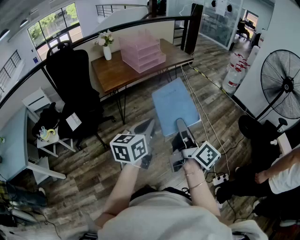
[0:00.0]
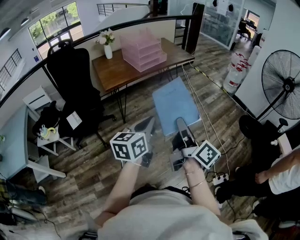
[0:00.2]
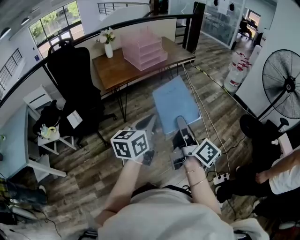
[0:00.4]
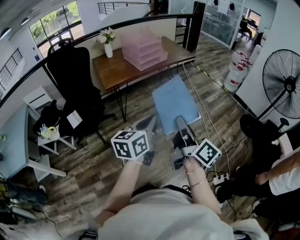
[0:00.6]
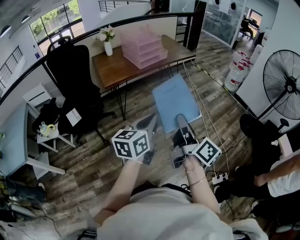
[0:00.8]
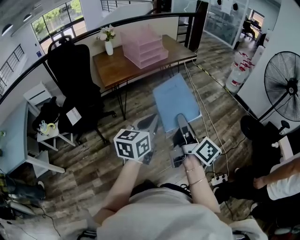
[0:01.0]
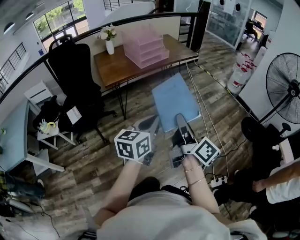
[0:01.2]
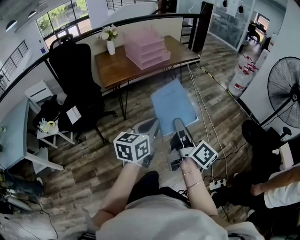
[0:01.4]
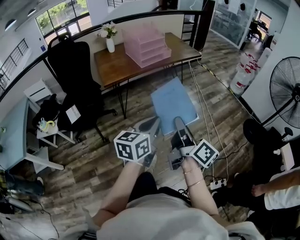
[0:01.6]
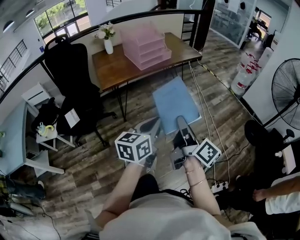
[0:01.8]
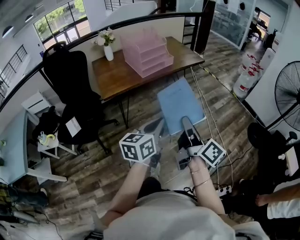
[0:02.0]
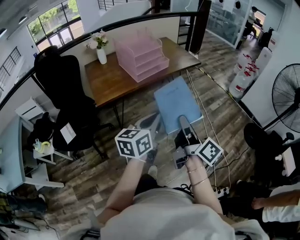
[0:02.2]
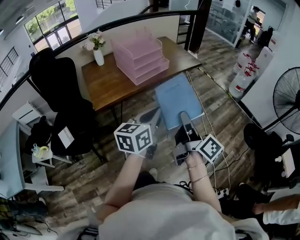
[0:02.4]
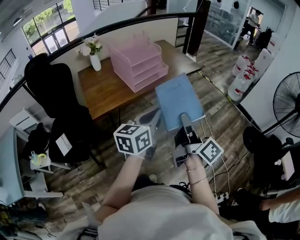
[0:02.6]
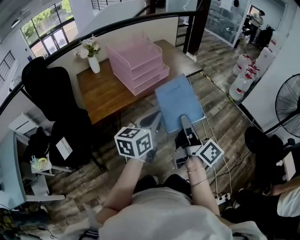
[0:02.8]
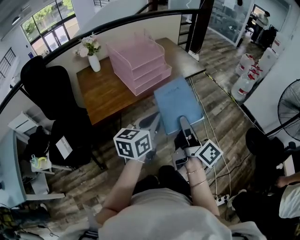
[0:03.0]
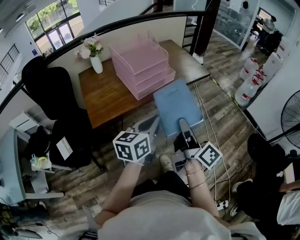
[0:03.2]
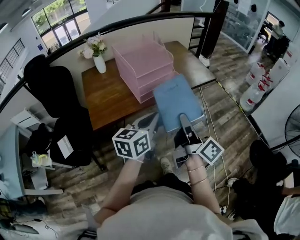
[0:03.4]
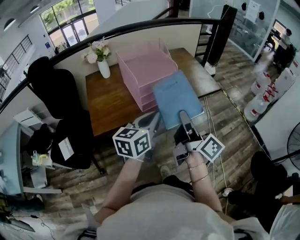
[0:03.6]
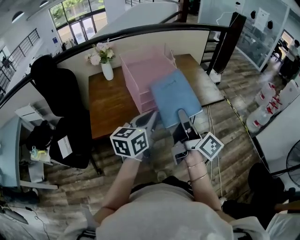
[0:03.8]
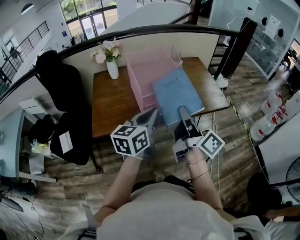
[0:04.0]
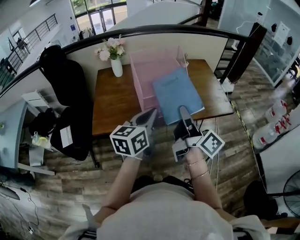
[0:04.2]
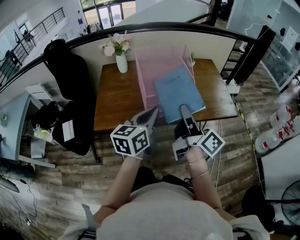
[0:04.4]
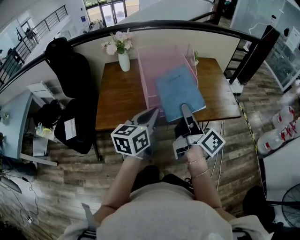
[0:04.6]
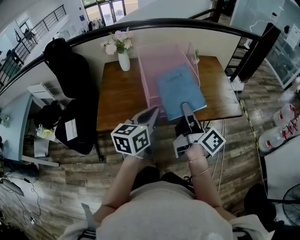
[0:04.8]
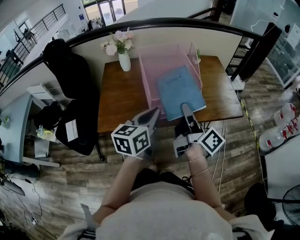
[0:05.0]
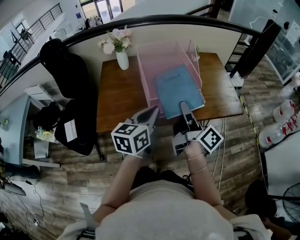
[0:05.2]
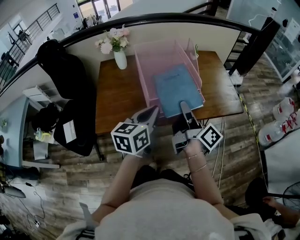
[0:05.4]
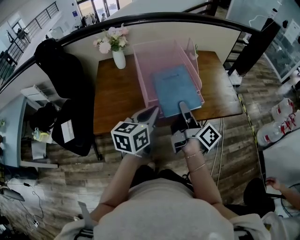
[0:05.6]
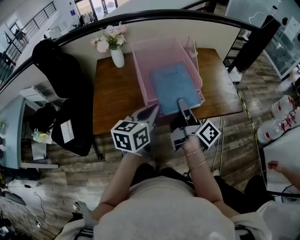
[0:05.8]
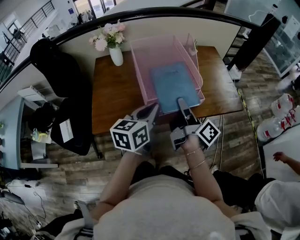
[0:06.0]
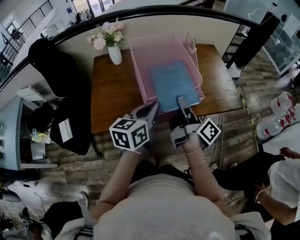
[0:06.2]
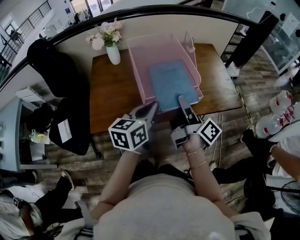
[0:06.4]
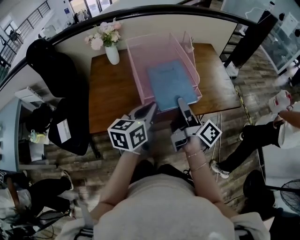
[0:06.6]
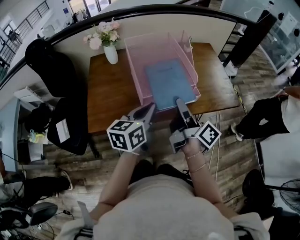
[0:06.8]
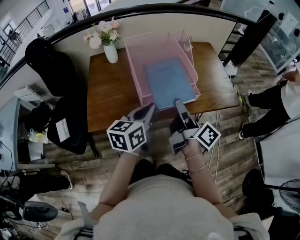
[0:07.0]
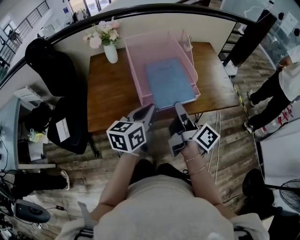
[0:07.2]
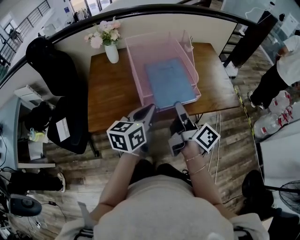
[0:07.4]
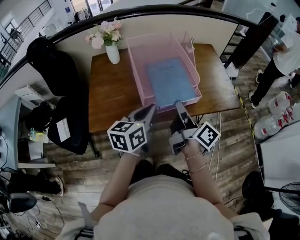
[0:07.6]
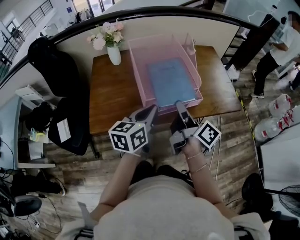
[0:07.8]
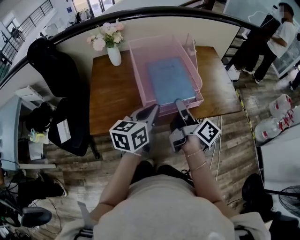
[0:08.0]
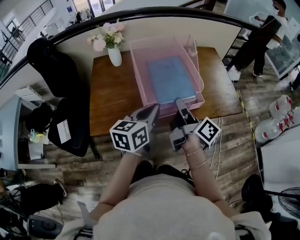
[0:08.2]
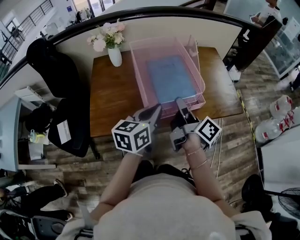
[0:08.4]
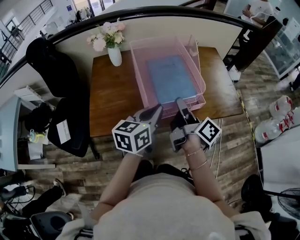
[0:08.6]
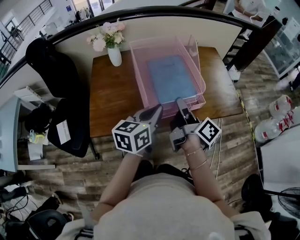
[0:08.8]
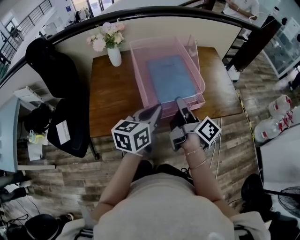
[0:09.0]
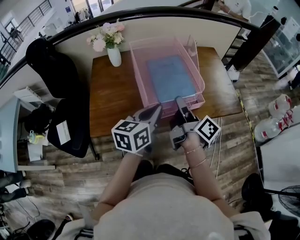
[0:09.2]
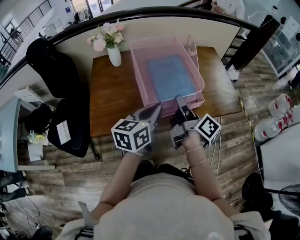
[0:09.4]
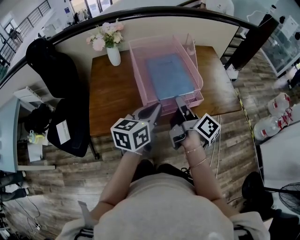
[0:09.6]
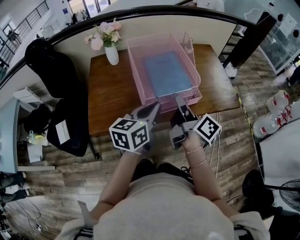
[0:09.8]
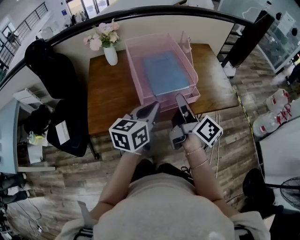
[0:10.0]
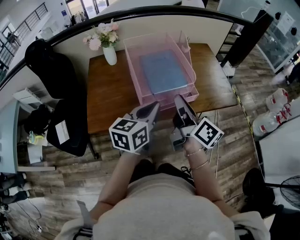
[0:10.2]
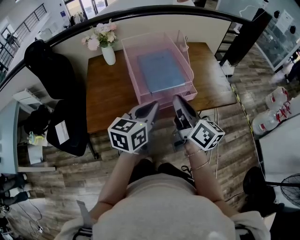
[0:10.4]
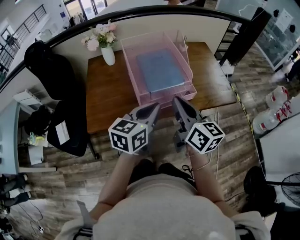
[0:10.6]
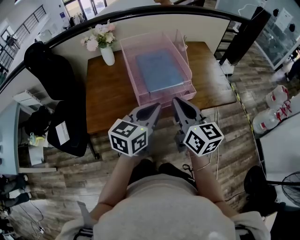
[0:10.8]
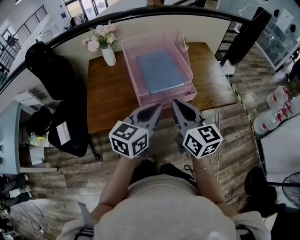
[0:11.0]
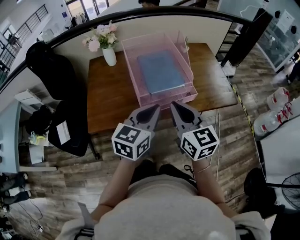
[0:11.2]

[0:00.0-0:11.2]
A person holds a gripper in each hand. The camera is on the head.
0:00.0 to 0:01.6: Both grippers move forward, approximately 5 cm.
0:01.6 to 0:03.2: The grippers both shift forward by about 35 cm.
0:03.2 to 0:04.8: Both grippers travel together forward, about 25 cm. The left gripper changes its angle by roughly 20 degrees, while the right gripper rotates some 20 degrees.
0:04.8 to 0:06.4: The left gripper ends up some 5 cm from where it was, while the right gripper moves forward and downward, about 5 cm, and opens up.
0:06.4 to 0:08.0: The right gripper closes.
0:08.0 to 0:09.6: There are only small adjustments of the grippers.
0:09.6 to 0:11.2: The right gripper is displaced backward by some 10 cm, and rolls counterclockwise, seen from behind, by some 70 degrees. Meanwhile the left gripper shifts by approximately 5 cm.

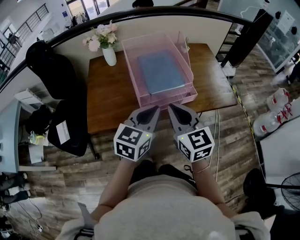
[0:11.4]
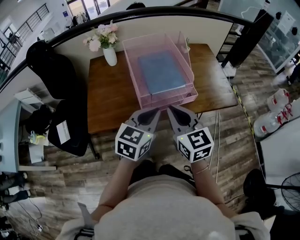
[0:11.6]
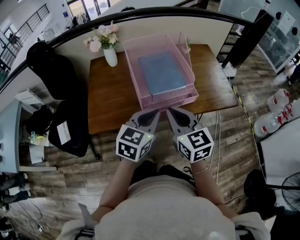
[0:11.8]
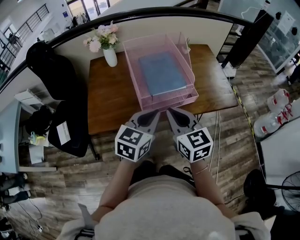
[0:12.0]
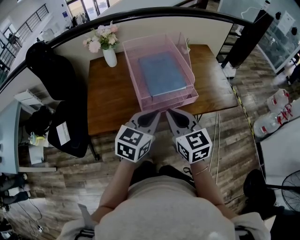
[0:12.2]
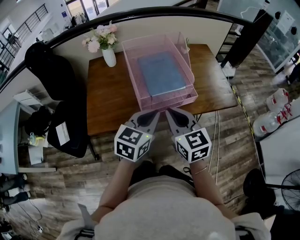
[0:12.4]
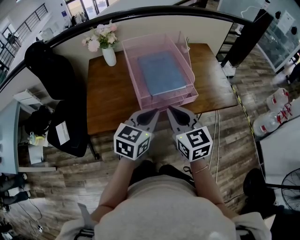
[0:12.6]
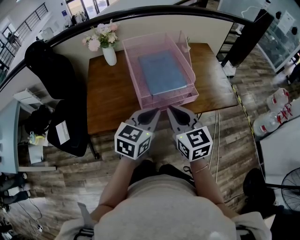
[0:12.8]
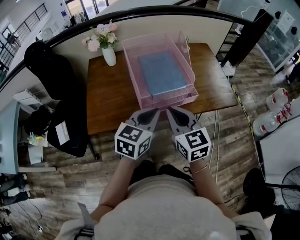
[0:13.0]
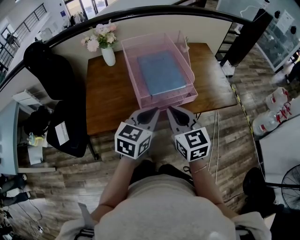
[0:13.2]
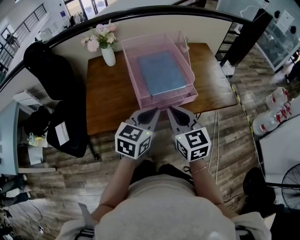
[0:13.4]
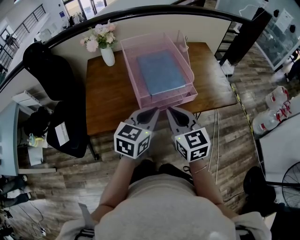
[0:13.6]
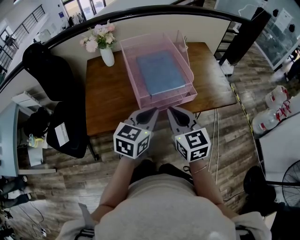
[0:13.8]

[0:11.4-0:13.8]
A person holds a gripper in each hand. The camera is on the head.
0:11.4 to 0:12.6: The grippers make only small movements.
0:12.6 to 0:13.8: Both grippers stay about where they are.

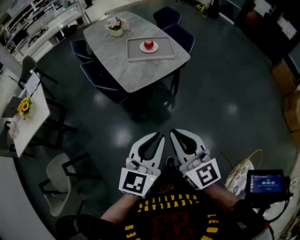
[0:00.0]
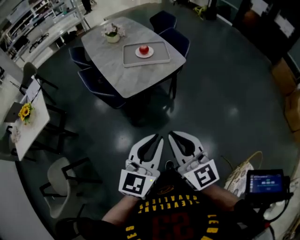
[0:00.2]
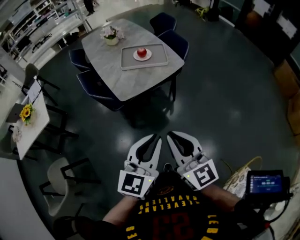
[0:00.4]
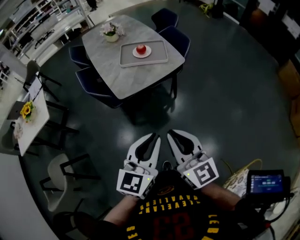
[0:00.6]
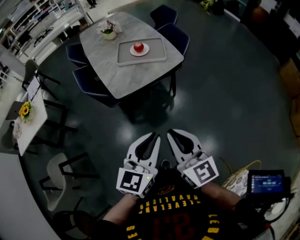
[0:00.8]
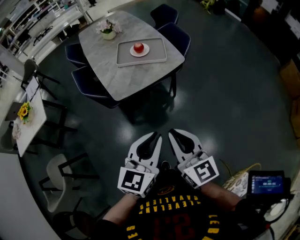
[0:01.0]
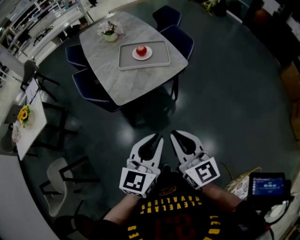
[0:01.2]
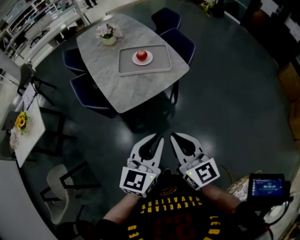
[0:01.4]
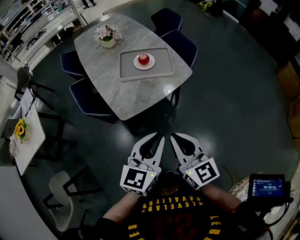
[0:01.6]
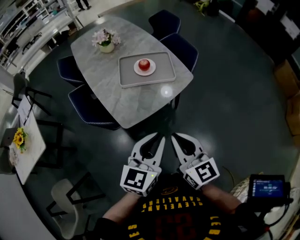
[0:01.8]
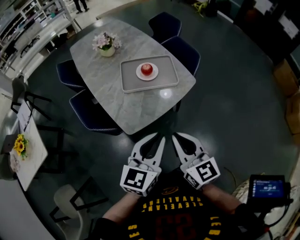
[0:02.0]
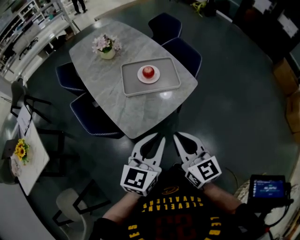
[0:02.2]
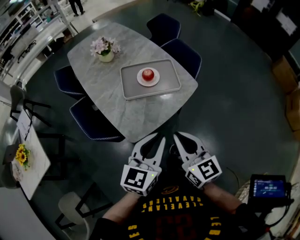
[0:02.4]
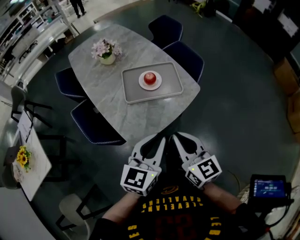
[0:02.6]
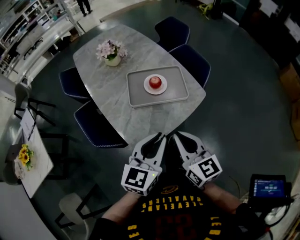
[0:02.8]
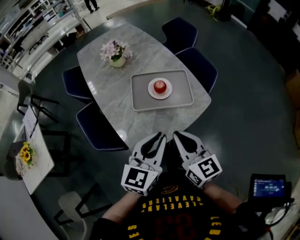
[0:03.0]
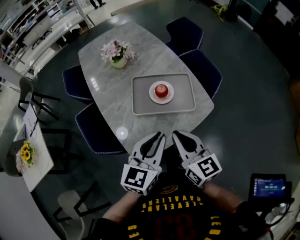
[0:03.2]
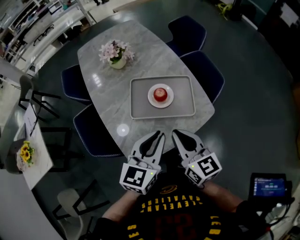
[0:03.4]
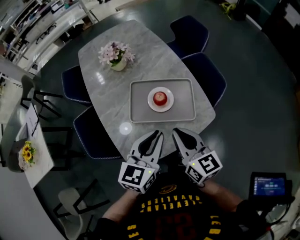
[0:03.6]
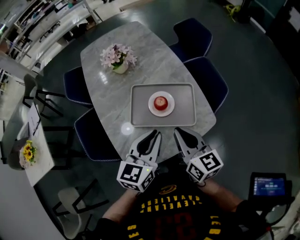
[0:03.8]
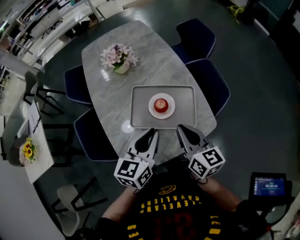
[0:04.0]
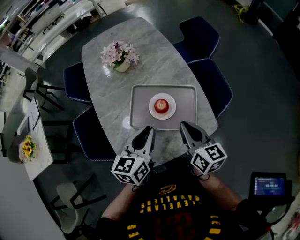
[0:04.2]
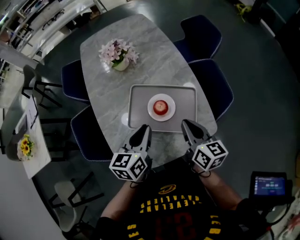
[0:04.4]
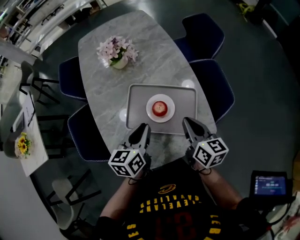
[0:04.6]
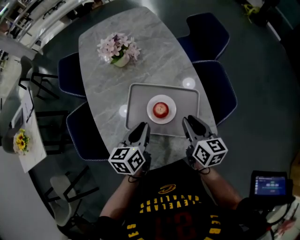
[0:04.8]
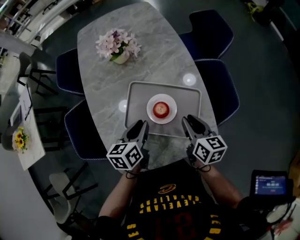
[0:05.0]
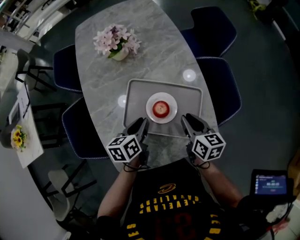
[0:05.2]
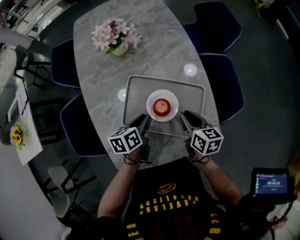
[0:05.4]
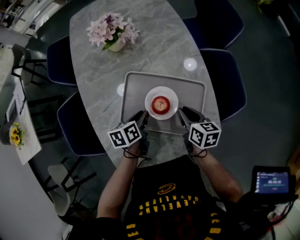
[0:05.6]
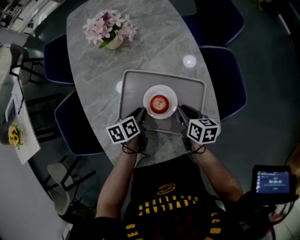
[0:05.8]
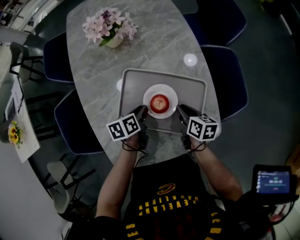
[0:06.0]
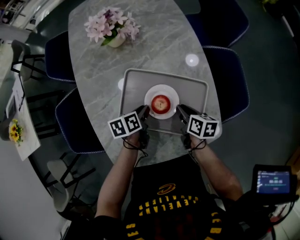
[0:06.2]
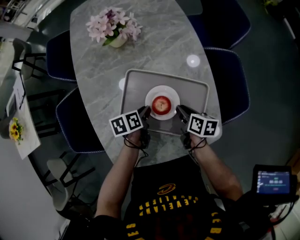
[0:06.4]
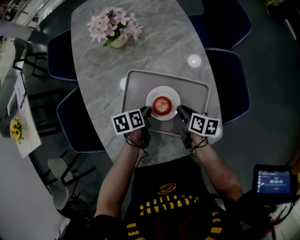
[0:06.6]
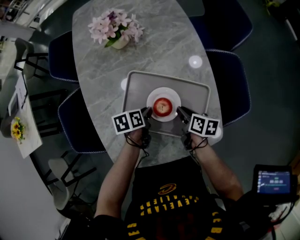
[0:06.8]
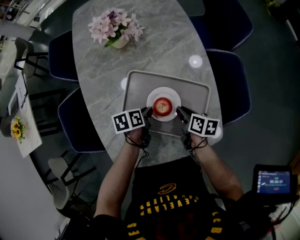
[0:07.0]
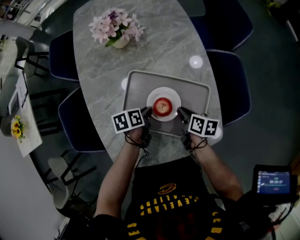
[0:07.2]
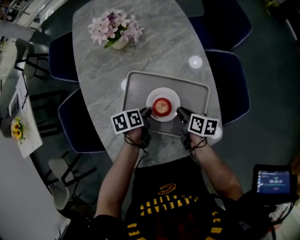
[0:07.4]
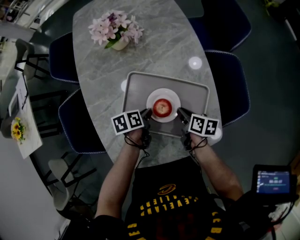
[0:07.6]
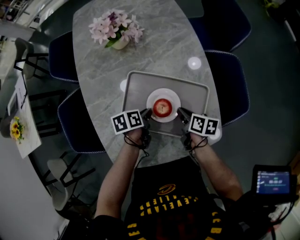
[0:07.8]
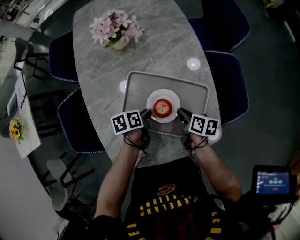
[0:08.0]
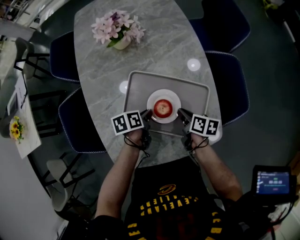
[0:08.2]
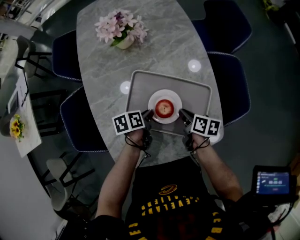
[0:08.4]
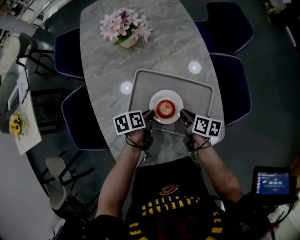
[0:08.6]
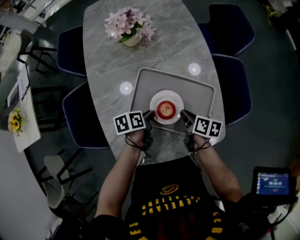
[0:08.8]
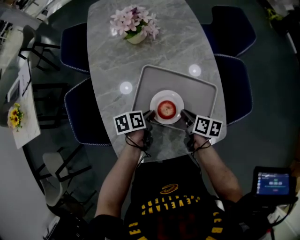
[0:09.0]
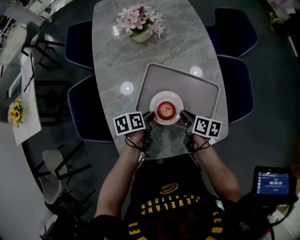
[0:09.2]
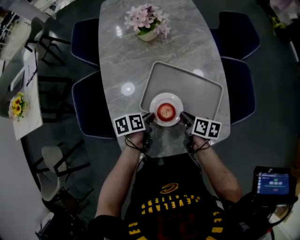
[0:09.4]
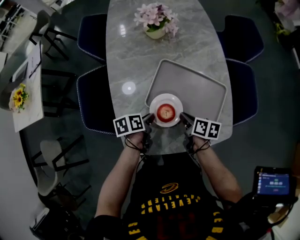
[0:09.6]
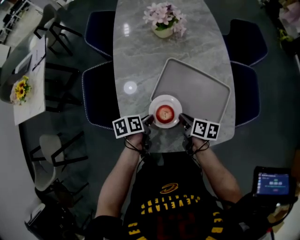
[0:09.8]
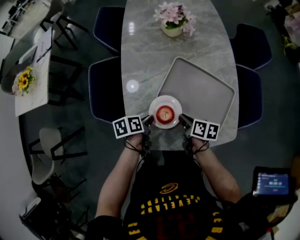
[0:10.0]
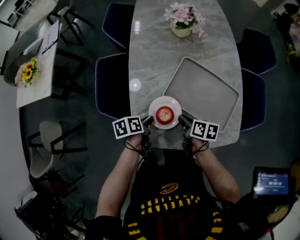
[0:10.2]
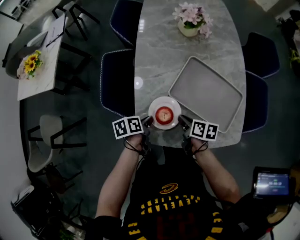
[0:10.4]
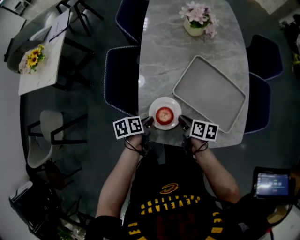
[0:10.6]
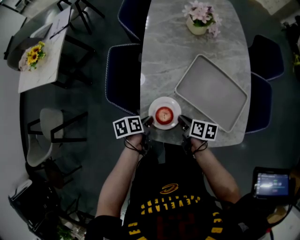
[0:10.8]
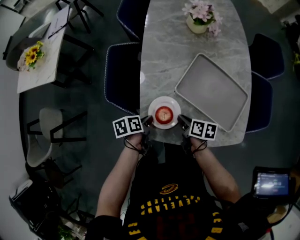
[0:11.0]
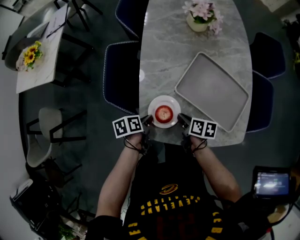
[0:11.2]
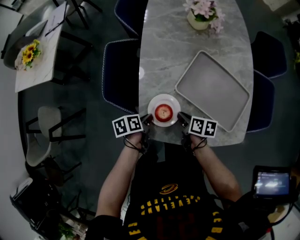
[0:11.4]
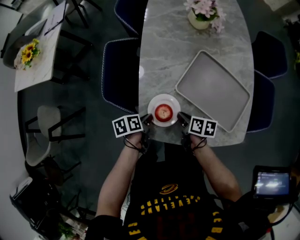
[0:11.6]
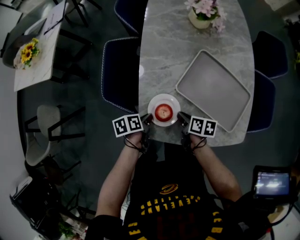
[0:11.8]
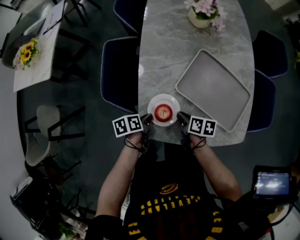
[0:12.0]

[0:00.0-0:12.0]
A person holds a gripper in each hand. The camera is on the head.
0:00.0 to 0:01.6: Both grippers travel together forward, roughly 20 cm.
0:01.6 to 0:03.0: Both grippers travel together forward, roughly 20 cm.
0:03.0 to 0:04.4: The right gripper travels forward and to the right by some 25 cm. Meanwhile the left gripper is displaced forward and downward by approximately 25 cm, and swivels approximately 30 degrees.
0:04.4 to 0:06.0: Both grippers travel together downward and forward, approximately 25 cm. The left gripper rotates approximately 40 degrees, while the right gripper changes its angle by about 30 degrees.
0:06.0 to 0:07.6: The grippers make only small movements.
0:07.6 to 0:09.0: The left gripper ends up some 5 cm from where it was.
0:09.0 to 0:10.4: The two grippers go some 20 cm to the left and backward.
0:10.4 to 0:12.0: The left gripper moves some 5 cm. Meanwhile the right gripper ends up about 5 cm from where it was.
